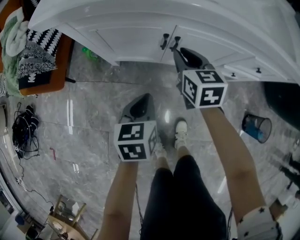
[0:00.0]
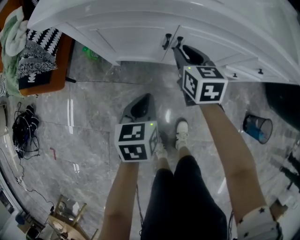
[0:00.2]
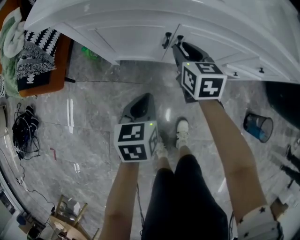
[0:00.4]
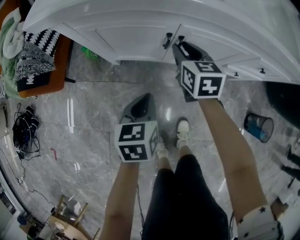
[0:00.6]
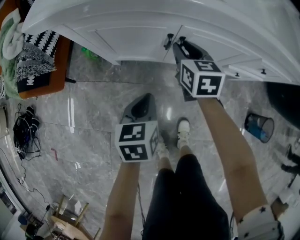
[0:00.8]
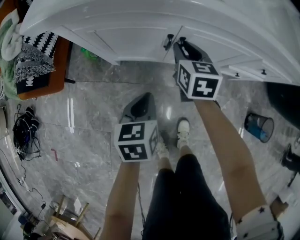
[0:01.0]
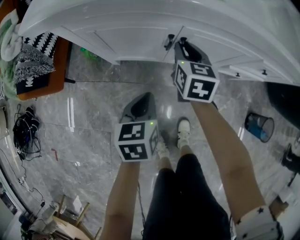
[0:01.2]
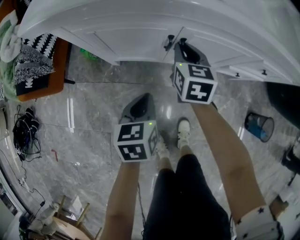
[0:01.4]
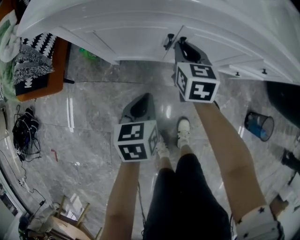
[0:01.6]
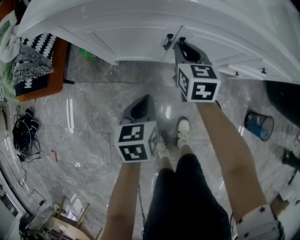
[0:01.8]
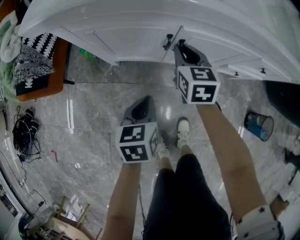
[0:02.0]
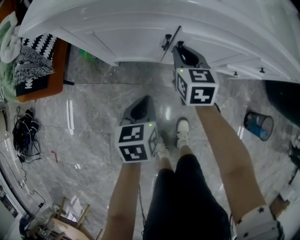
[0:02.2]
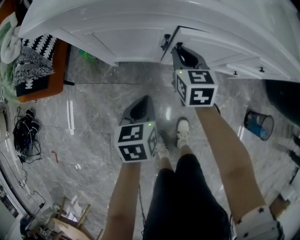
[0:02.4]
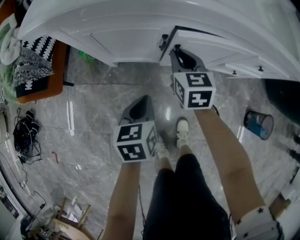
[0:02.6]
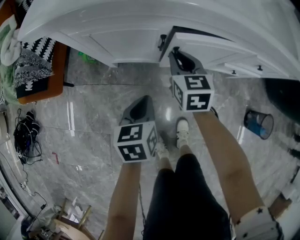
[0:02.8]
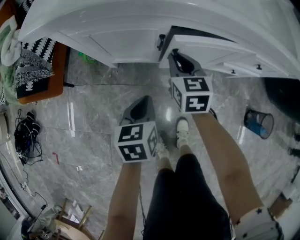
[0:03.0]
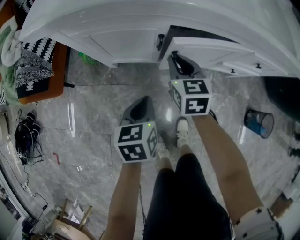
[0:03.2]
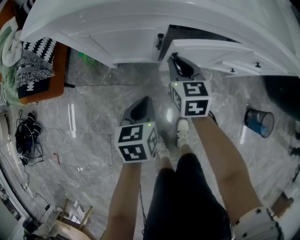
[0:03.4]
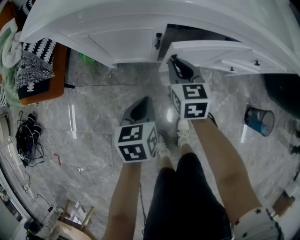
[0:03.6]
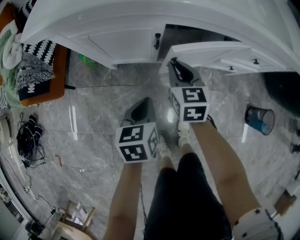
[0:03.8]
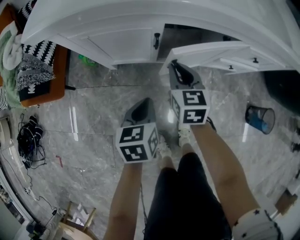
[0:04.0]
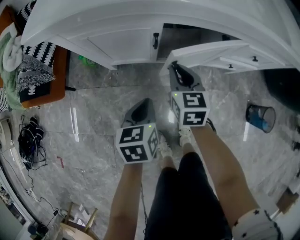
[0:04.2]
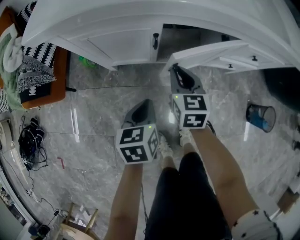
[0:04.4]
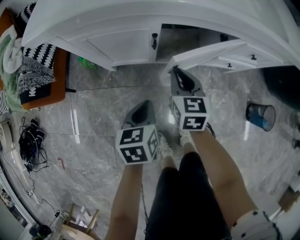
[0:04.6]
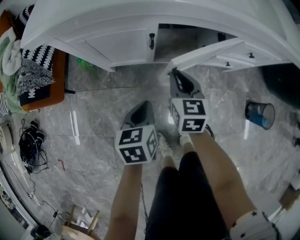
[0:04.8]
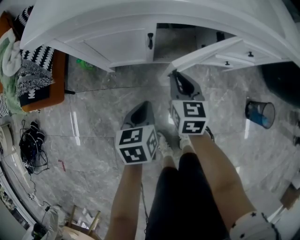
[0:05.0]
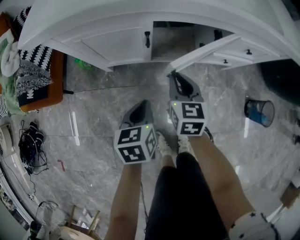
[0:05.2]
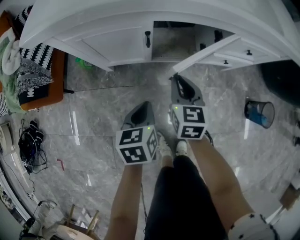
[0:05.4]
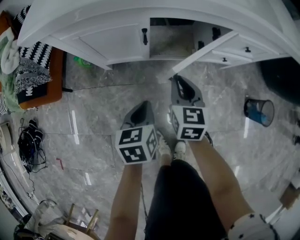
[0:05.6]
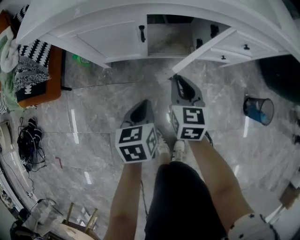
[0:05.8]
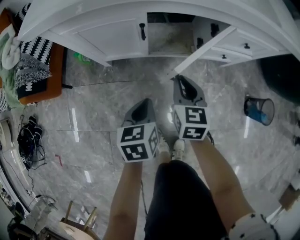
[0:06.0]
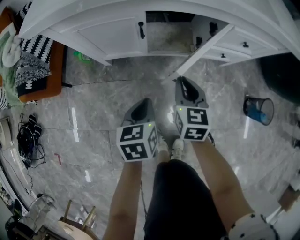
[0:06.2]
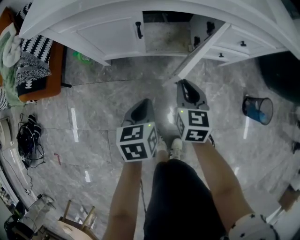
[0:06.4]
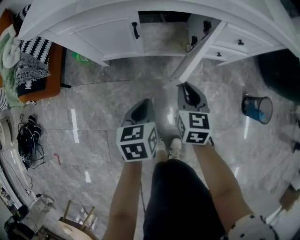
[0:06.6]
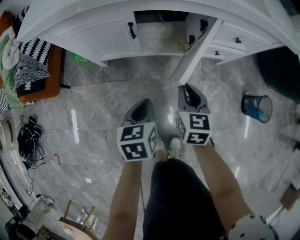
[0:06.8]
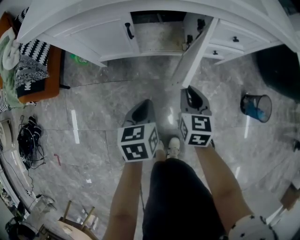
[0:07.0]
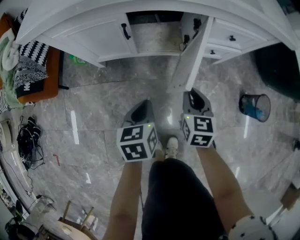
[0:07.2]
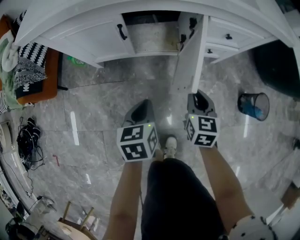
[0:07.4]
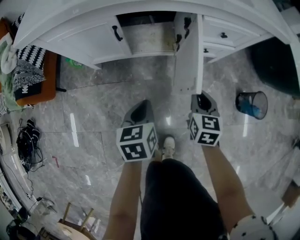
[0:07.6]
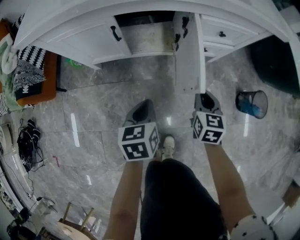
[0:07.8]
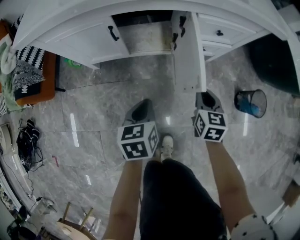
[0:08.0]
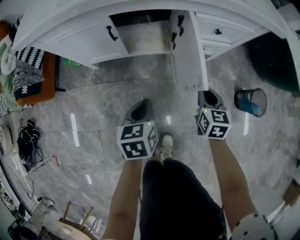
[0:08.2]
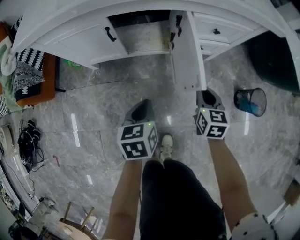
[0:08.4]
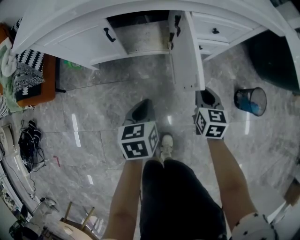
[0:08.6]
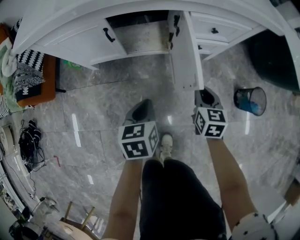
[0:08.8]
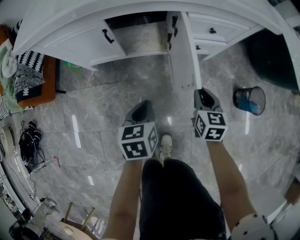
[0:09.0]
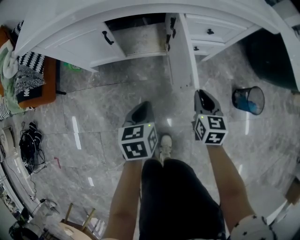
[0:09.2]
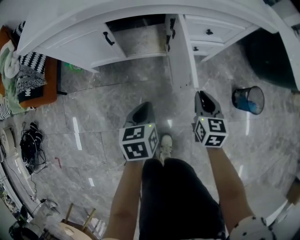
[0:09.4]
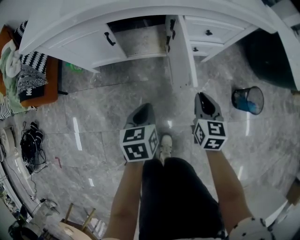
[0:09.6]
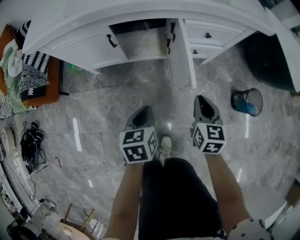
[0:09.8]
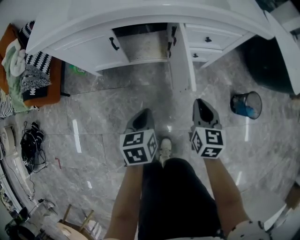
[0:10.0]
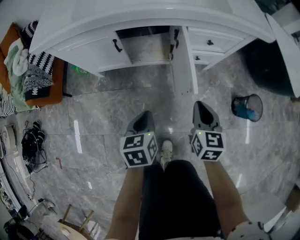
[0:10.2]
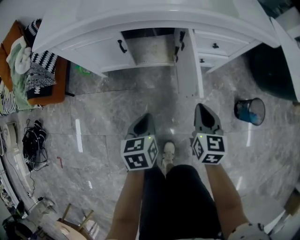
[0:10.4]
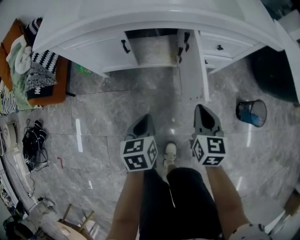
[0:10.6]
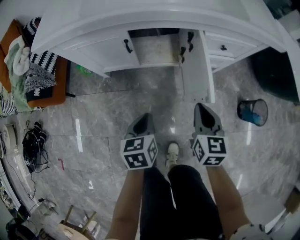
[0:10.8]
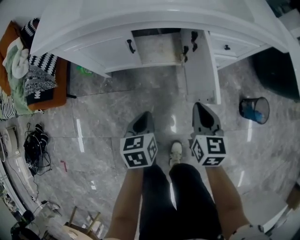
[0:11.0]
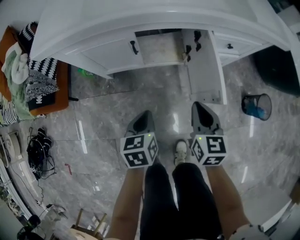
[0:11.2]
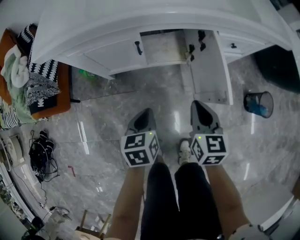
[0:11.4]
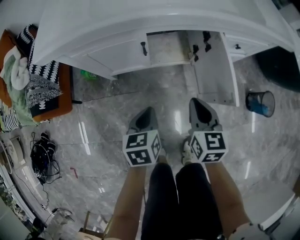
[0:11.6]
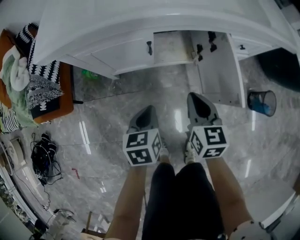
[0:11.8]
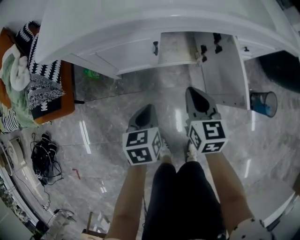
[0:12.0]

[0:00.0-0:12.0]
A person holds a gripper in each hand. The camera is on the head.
0:00.0 to 0:03.0: The grippers make only small movements.
0:03.0 to 0:04.4: The right gripper heads backward, covering roughly 5 cm.
0:04.4 to 0:06.0: The left gripper changes place by approximately 5 cm. The right gripper goes some 10 cm backward and to the right.
0:06.0 to 0:07.6: The left gripper is displaced to the right by roughly 10 cm, while the right gripper is displaced to the right by some 20 cm.
0:07.6 to 0:09.0: The right gripper shifts roughly 5 cm to the right.
0:09.0 to 0:10.4: The left gripper moves approximately 5 cm. Meanwhile the right gripper travels upward by roughly 10 cm.
0:10.4 to 0:12.0: The left gripper moves to the left and forward, roughly 20 cm. Meanwhile the right gripper goes approximately 25 cm to the left.

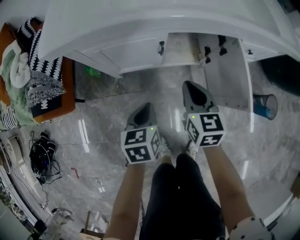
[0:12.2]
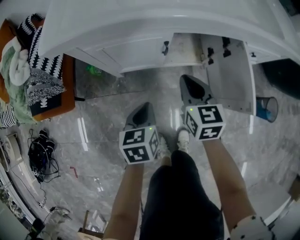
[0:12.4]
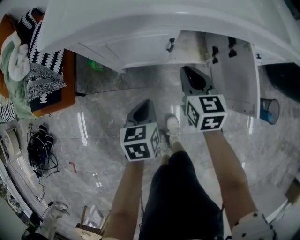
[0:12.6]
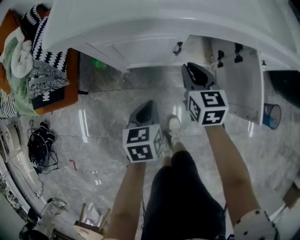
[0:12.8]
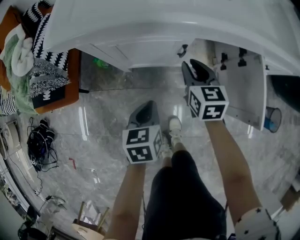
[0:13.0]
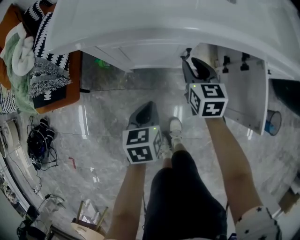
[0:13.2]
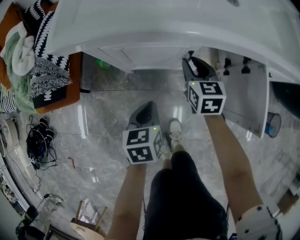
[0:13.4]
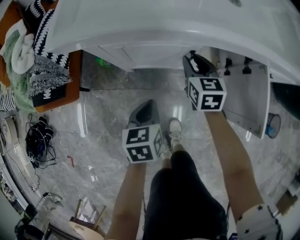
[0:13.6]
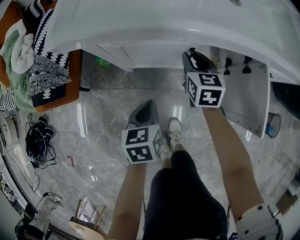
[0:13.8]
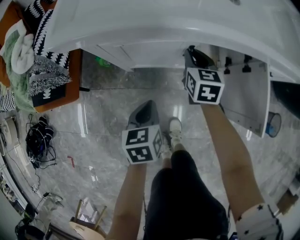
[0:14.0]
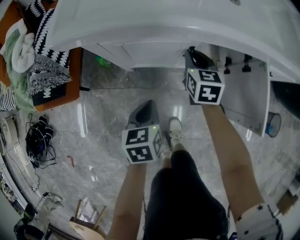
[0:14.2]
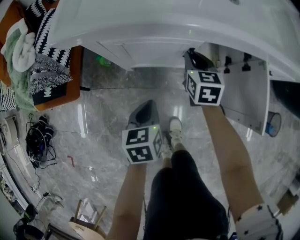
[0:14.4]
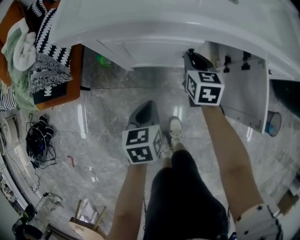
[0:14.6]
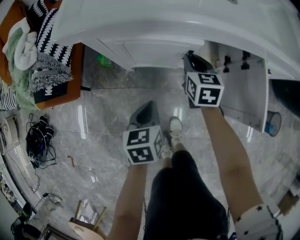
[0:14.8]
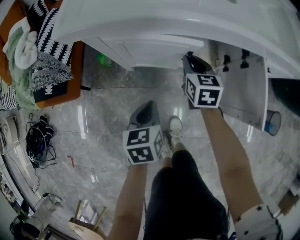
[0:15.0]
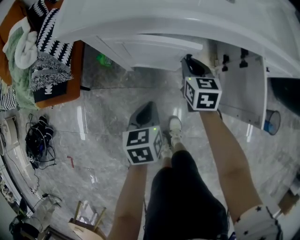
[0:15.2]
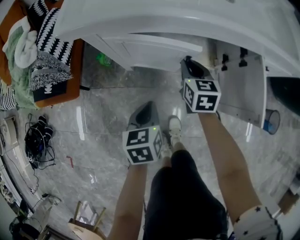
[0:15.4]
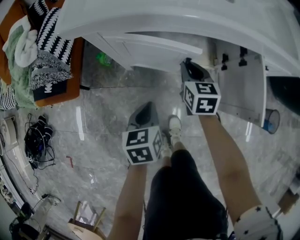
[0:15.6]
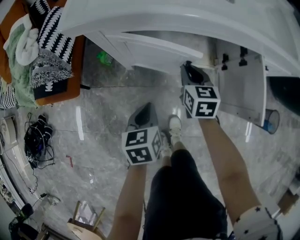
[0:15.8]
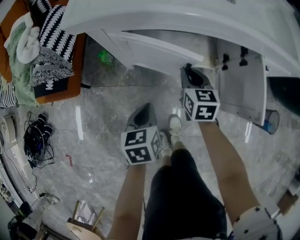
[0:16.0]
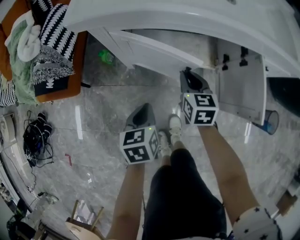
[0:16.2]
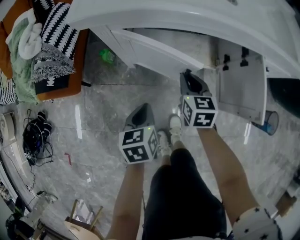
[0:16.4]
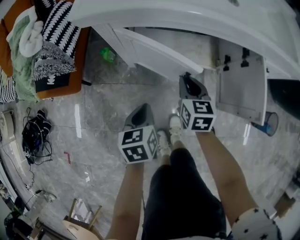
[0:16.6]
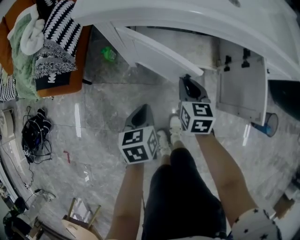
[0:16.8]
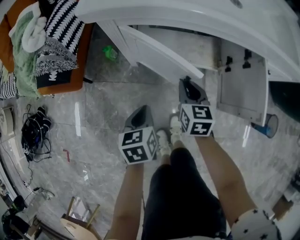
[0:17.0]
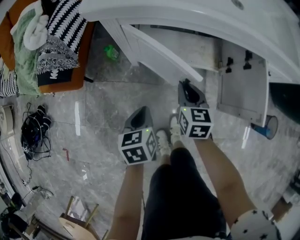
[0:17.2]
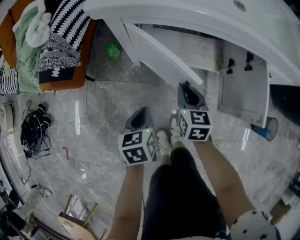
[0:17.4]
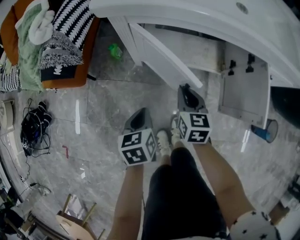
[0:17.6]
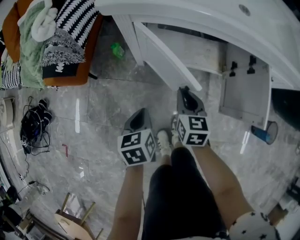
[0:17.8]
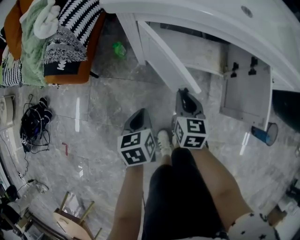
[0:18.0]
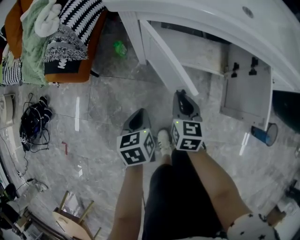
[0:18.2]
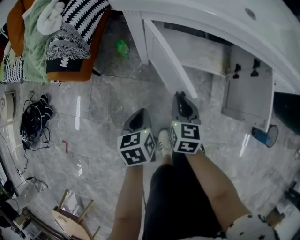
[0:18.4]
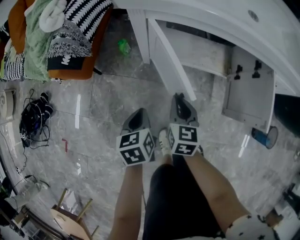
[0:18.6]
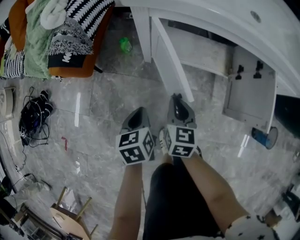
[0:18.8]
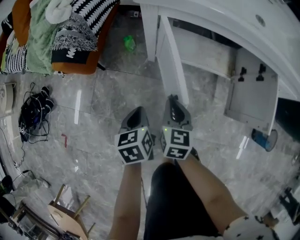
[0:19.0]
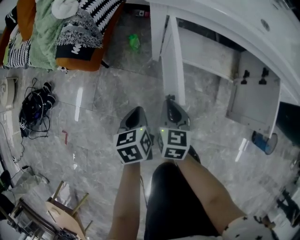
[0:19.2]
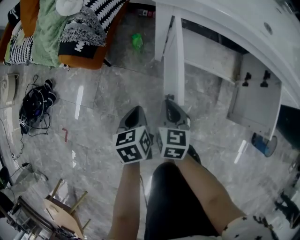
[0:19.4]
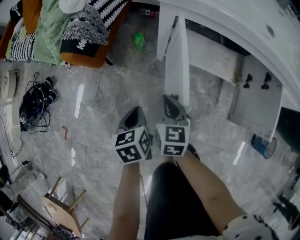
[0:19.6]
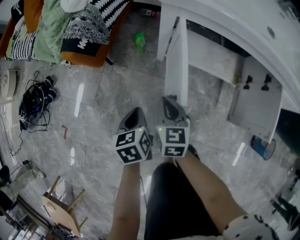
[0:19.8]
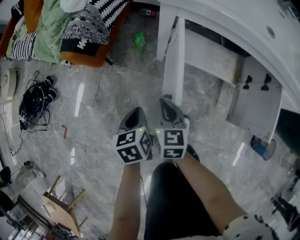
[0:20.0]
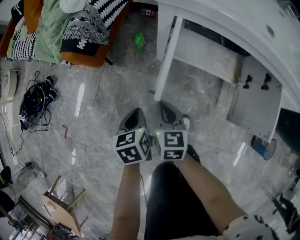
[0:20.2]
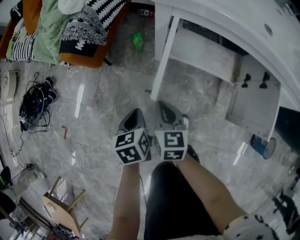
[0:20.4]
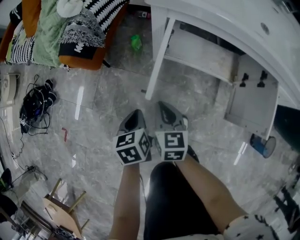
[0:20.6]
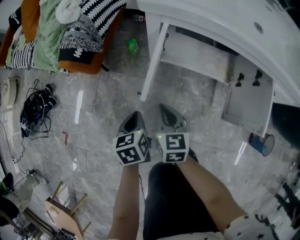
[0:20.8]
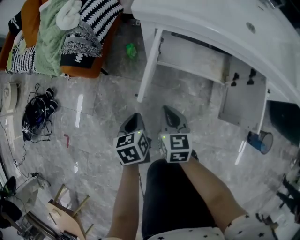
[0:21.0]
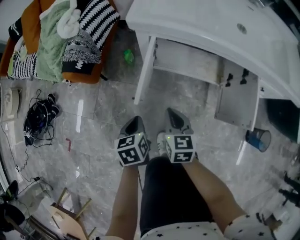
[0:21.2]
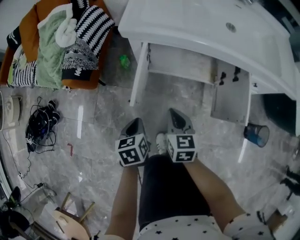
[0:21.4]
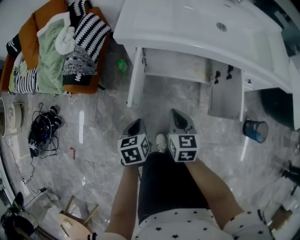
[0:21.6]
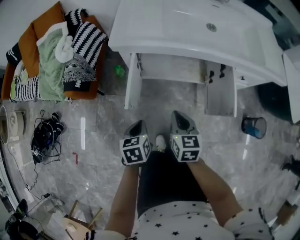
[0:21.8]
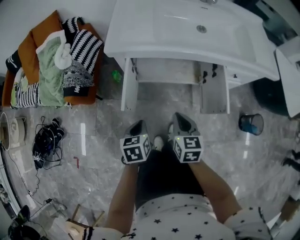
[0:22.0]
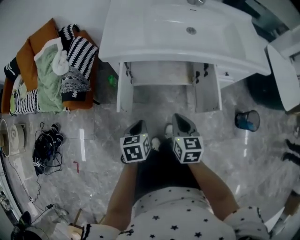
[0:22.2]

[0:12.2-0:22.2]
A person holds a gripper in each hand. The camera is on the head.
0:12.2 to 0:13.6: The right gripper heads forward, downward and to the left, covering some 15 cm, and opens; the left gripper is displaced to the left by roughly 5 cm.
0:13.6 to 0:15.0: The grippers move only a little.
0:15.0 to 0:16.4: The right gripper is displaced backward by roughly 10 cm, while the left gripper moves about 5 cm.
0:16.4 to 0:18.0: The left gripper travels to the left by about 5 cm, while the right gripper travels backward and to the left by about 10 cm.
0:18.0 to 0:19.4: The two grippers go roughly 10 cm to the left.
0:19.4 to 0:20.8: The grippers make only small movements.
0:20.8 to 0:22.2: The left gripper moves upward and to the right, about 20 cm, and rotates some 20 degrees. The right gripper heads to the right and upward, covering about 25 cm.

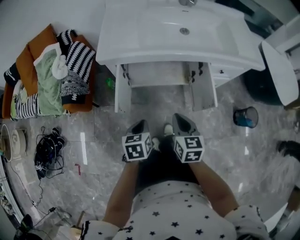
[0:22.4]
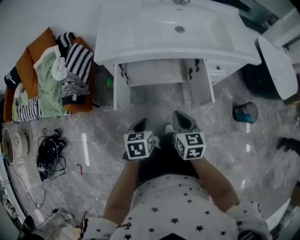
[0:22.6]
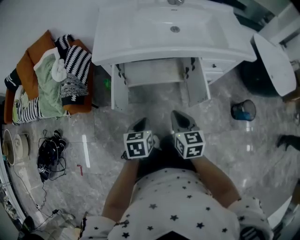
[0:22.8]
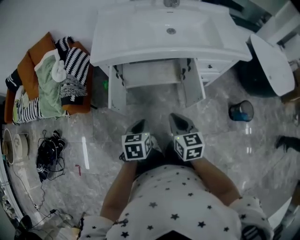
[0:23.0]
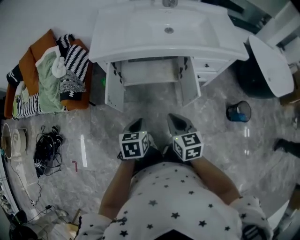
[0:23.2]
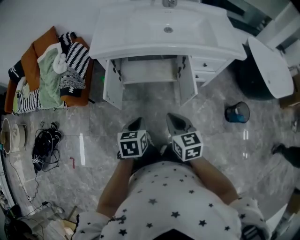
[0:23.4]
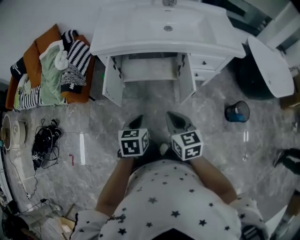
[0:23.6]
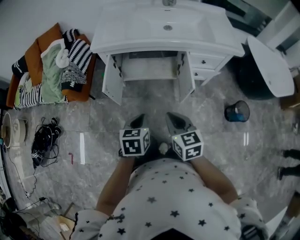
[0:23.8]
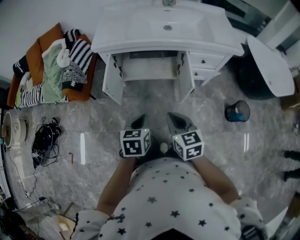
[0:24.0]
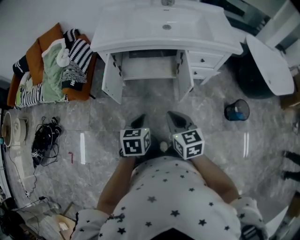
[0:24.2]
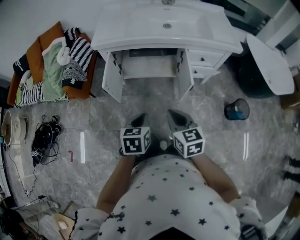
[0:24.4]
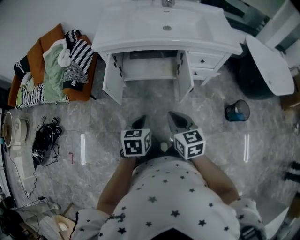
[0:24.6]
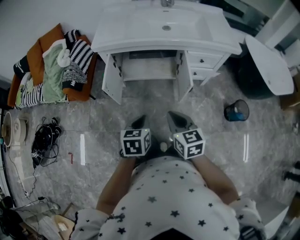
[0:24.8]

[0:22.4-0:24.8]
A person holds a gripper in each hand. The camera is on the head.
0:22.4 to 0:23.6: The left gripper shifts approximately 15 cm to the right, backward and upward. Meanwhile the right gripper shifts about 15 cm backward, to the right and upward.
0:23.6 to 0:24.8: The right gripper shifts by roughly 5 cm. The left gripper shifts by approximately 5 cm.
